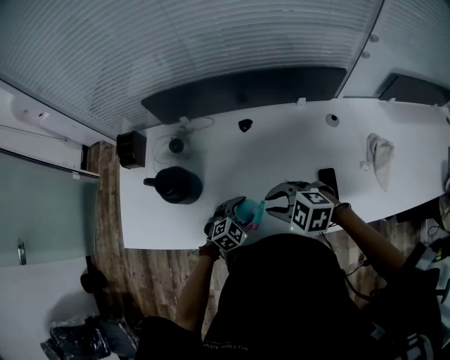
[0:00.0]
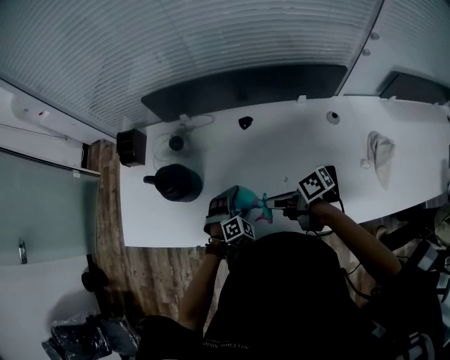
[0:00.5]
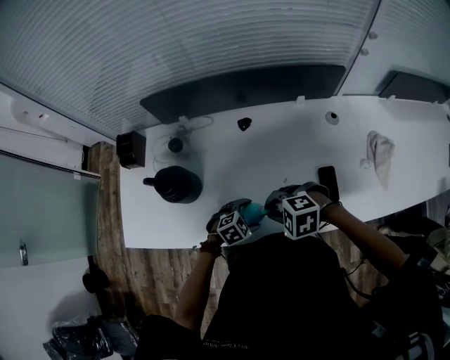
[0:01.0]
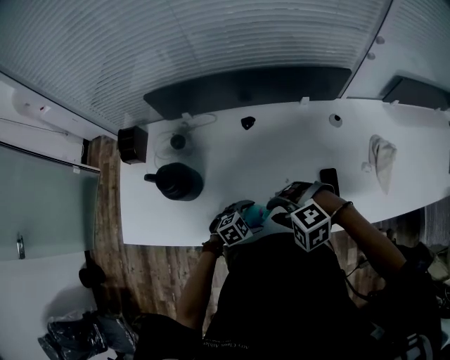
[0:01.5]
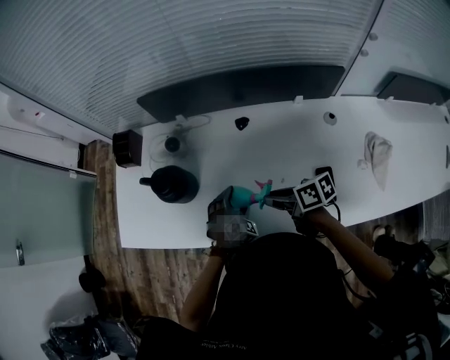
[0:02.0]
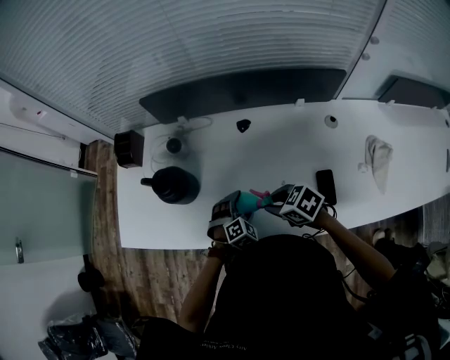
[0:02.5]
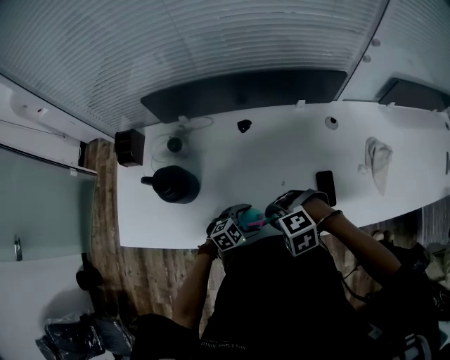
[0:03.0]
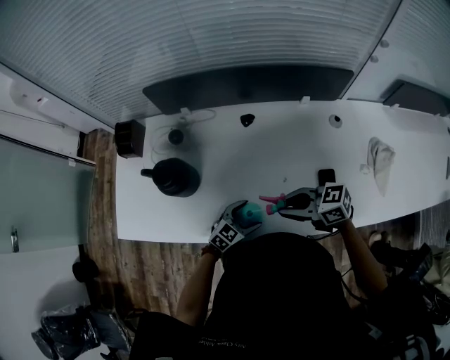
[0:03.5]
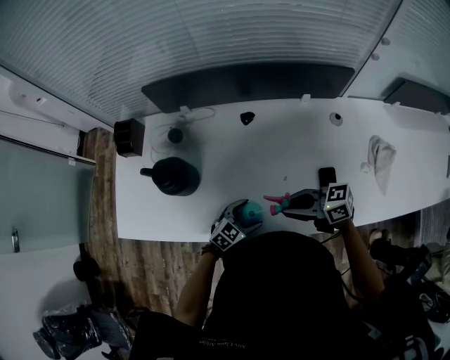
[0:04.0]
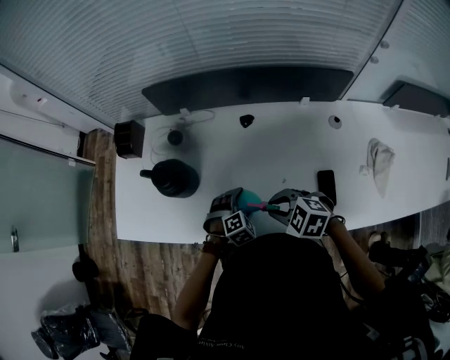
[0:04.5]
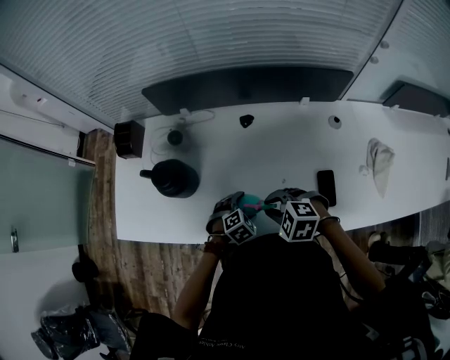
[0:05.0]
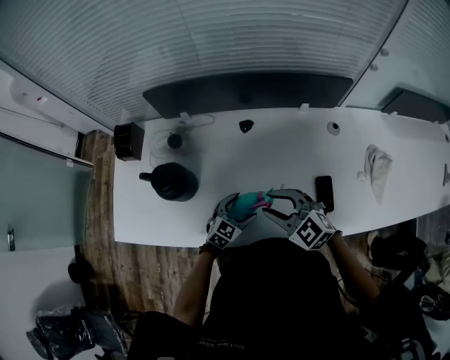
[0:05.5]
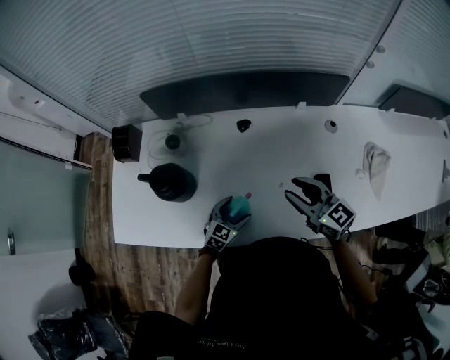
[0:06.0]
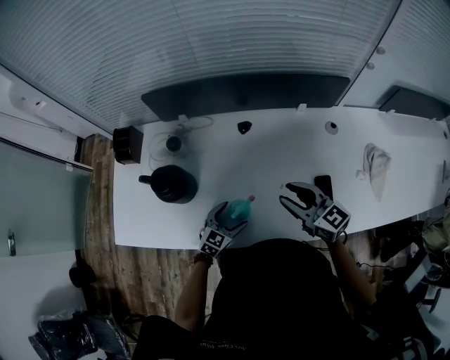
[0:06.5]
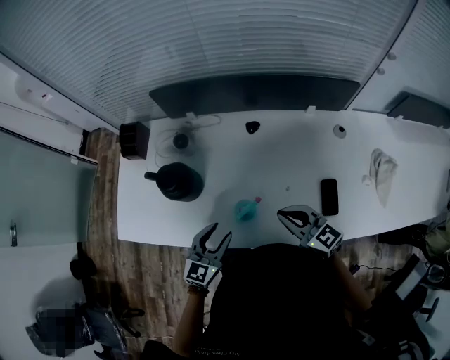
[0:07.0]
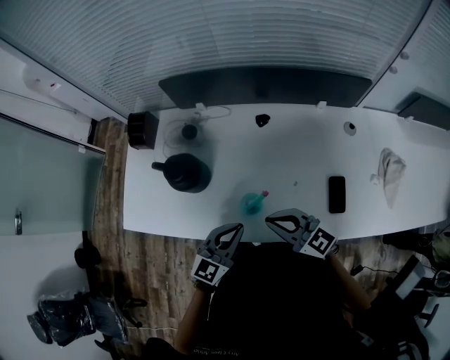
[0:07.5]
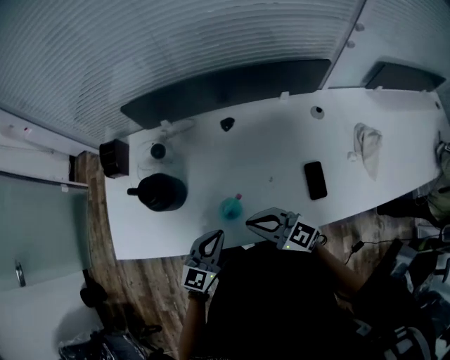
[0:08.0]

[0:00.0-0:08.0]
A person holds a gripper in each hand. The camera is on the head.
0:00.0 to 0:02.0: The left gripper ends up roughly 5 cm from where it was, and swivels approximately 30 degrees; the right gripper twists about 70 degrees clockwise, seen from behind.
0:02.0 to 0:04.0: The right gripper changes place by roughly 5 cm, and rotates approximately 30 degrees. Meanwhile the left gripper shifts by roughly 10 cm, and changes its angle by about 50 degrees.
0:04.0 to 0:06.0: The left gripper ends up roughly 5 cm from where it was. The right gripper ends up some 10 cm from where it was, and swivels approximately 40 degrees.
0:06.0 to 0:08.0: The right gripper moves to the left and backward, some 15 cm, swivels some 20 degrees, and closes. Meanwhile the left gripper moves upward and to the left, roughly 20 cm, turns by some 20 degrees, and closes.

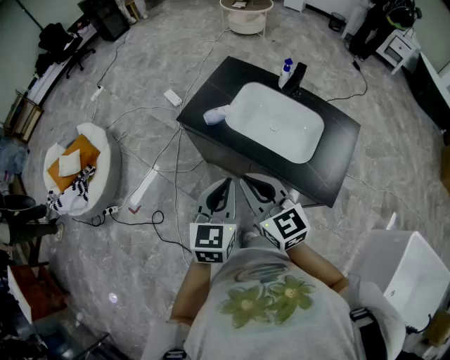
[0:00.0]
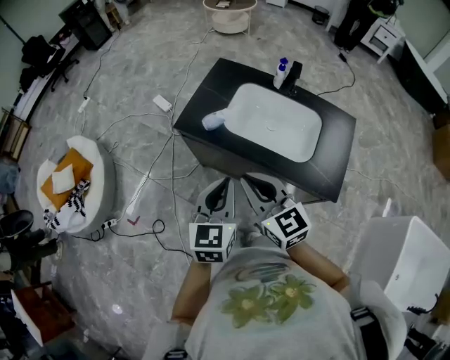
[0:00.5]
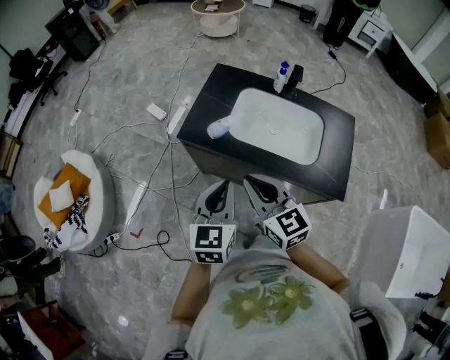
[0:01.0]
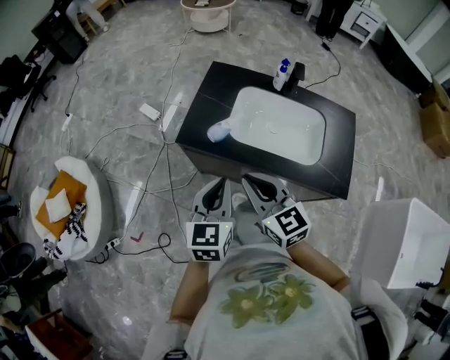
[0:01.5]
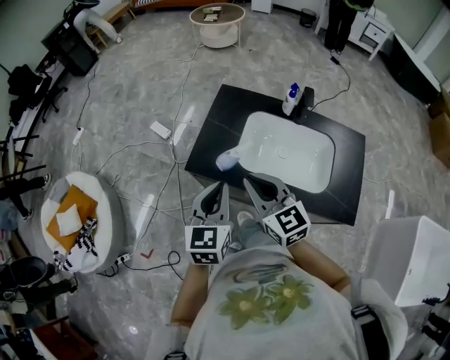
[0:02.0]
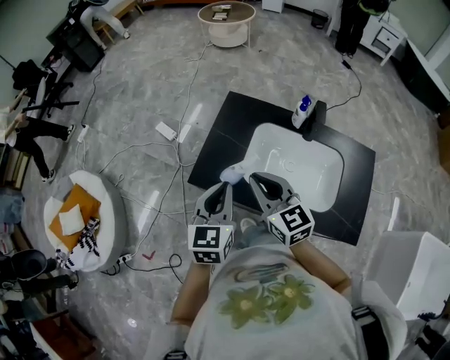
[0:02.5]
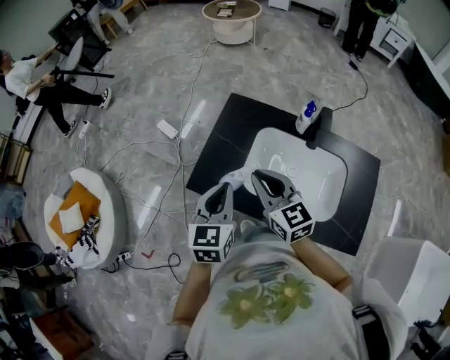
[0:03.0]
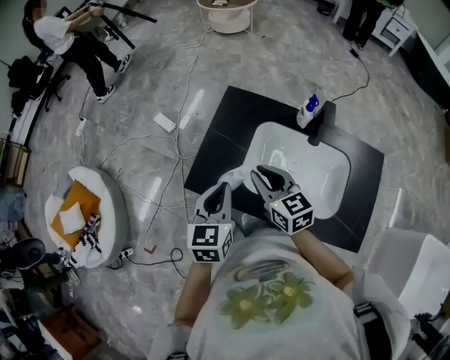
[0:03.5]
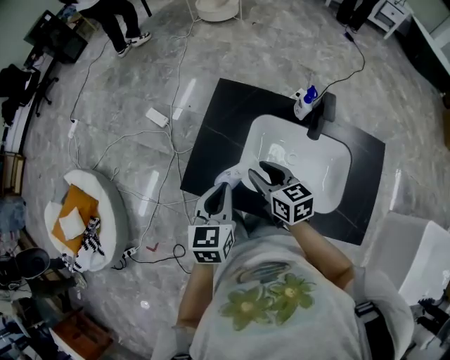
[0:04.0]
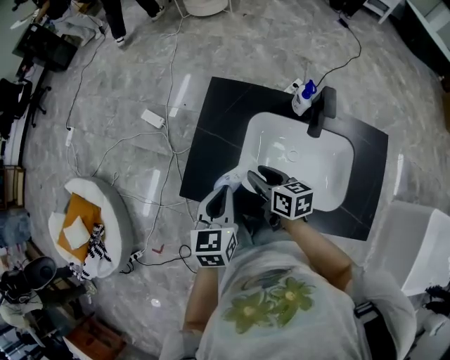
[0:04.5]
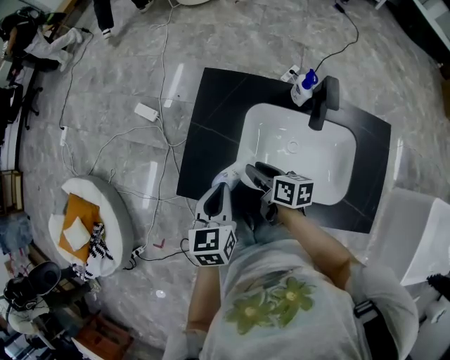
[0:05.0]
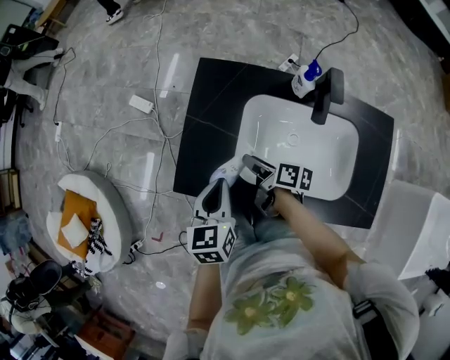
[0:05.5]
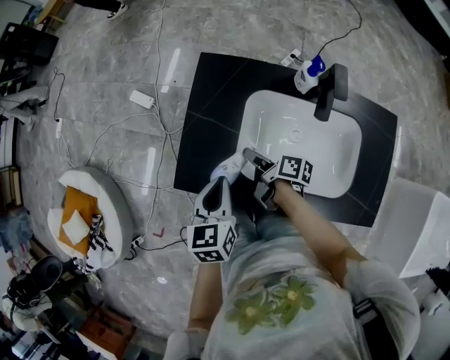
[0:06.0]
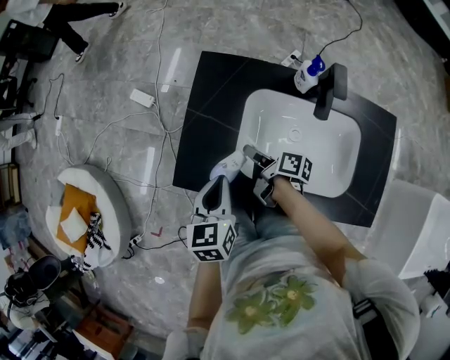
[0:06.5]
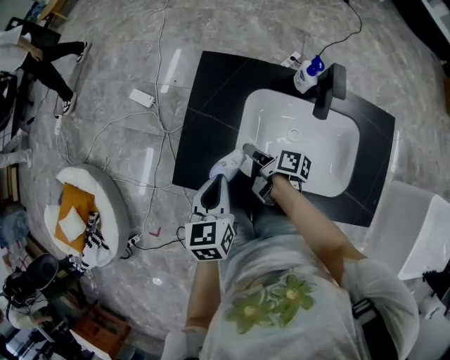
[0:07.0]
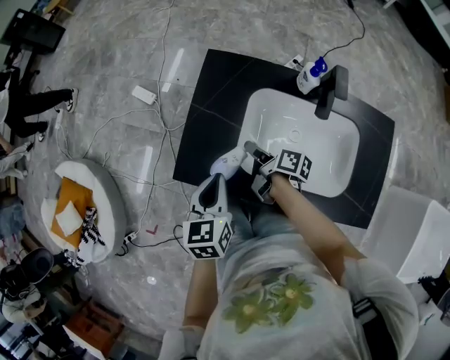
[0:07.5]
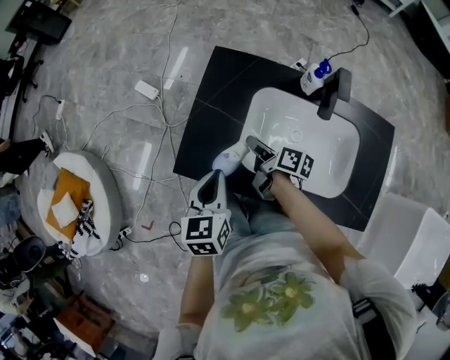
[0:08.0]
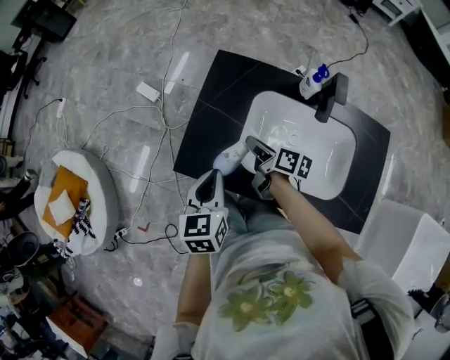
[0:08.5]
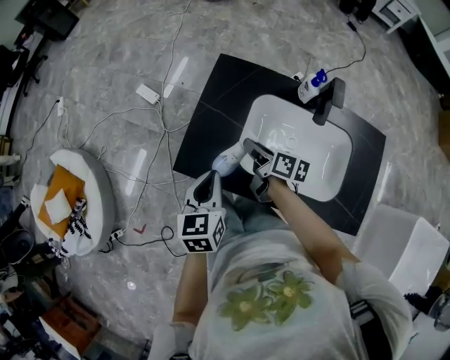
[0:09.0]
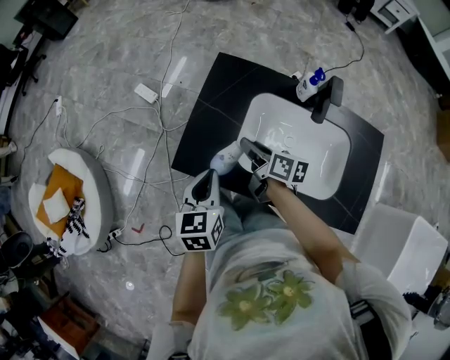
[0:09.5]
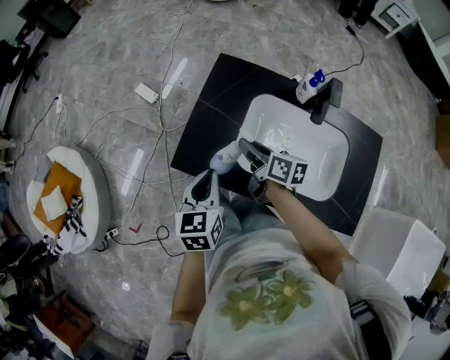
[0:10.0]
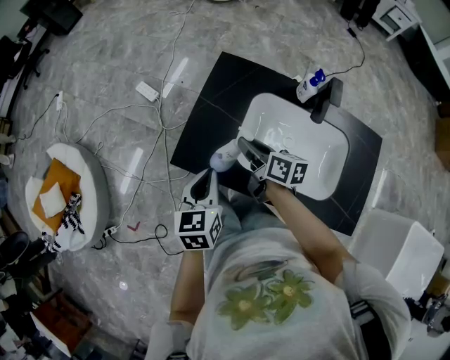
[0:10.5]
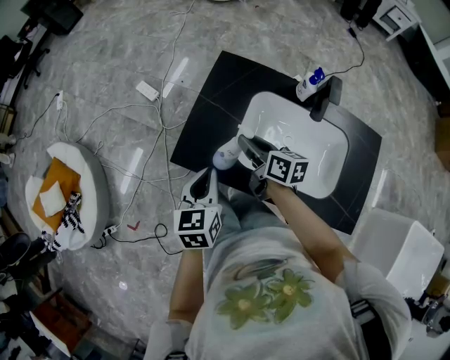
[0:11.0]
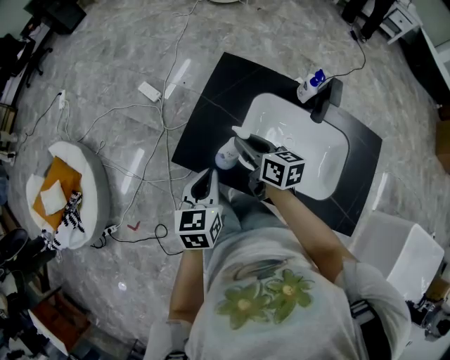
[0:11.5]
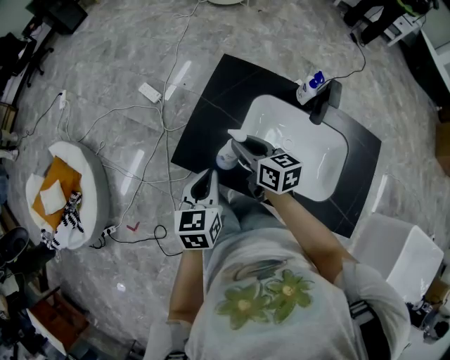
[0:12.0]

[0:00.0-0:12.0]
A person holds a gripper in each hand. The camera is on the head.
0:00.0 to 0:02.0: The right gripper travels forward by roughly 20 cm. The left gripper moves forward and to the left, approximately 25 cm.
0:02.0 to 0:04.0: The left gripper travels forward and downward by some 20 cm; the right gripper travels forward, downward and to the right by some 25 cm, rotates approximately 30 degrees, and opens up.
0:04.0 to 0:06.0: The left gripper goes approximately 10 cm downward. The right gripper is displaced downward by approximately 15 cm, and rolls clockwise, seen from behind, by about 60 degrees.
0:06.0 to 0:08.0: There are only small adjustments of the grippers.
0:08.0 to 0:10.0: The right gripper heads upward, covering about 5 cm, and rotates some 20 degrees.
0:10.0 to 0:12.0: The right gripper moves approximately 5 cm, and changes its angle by about 20 degrees.

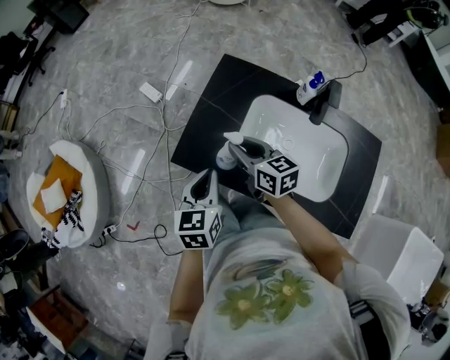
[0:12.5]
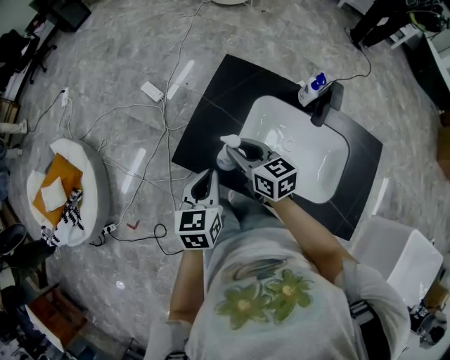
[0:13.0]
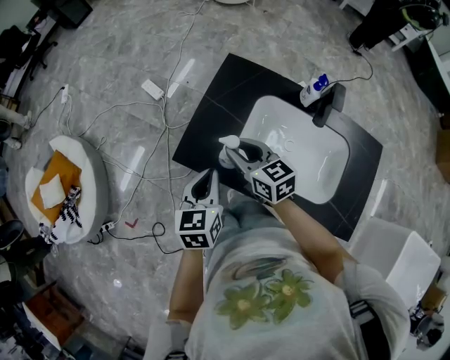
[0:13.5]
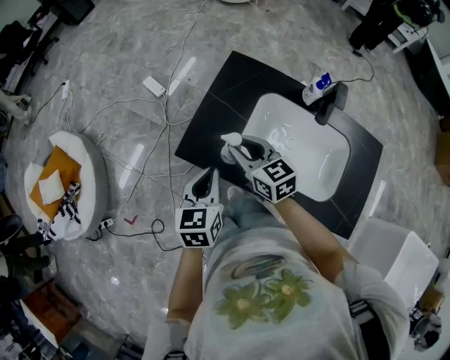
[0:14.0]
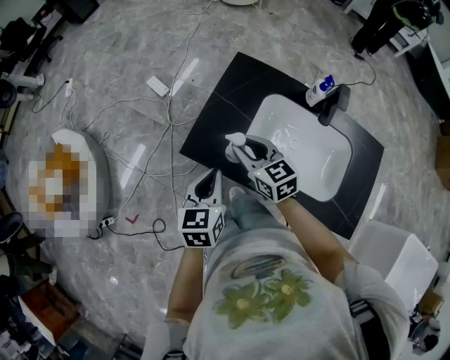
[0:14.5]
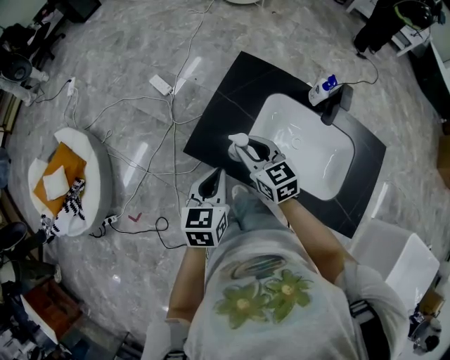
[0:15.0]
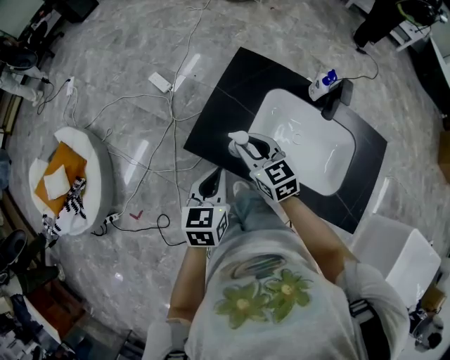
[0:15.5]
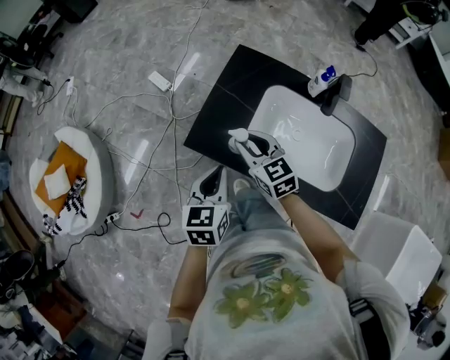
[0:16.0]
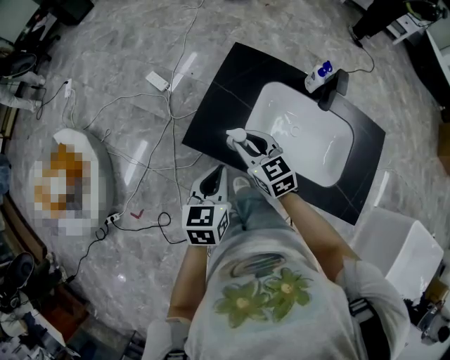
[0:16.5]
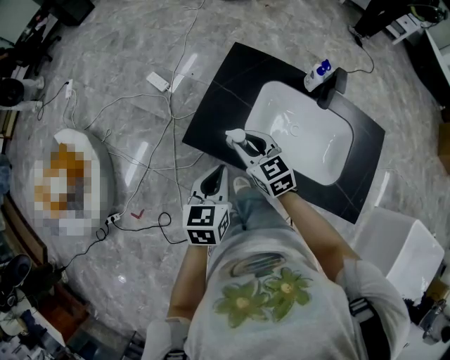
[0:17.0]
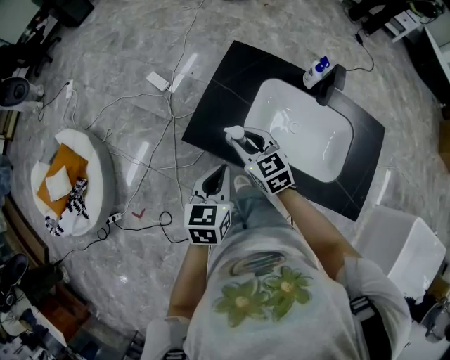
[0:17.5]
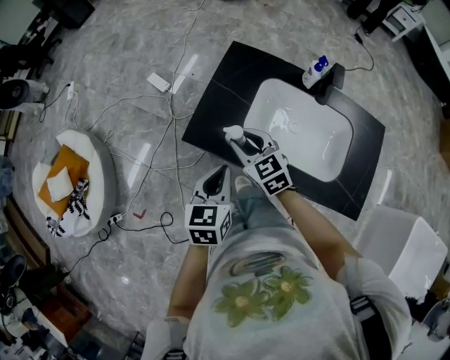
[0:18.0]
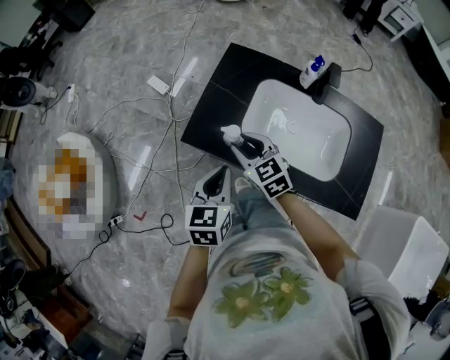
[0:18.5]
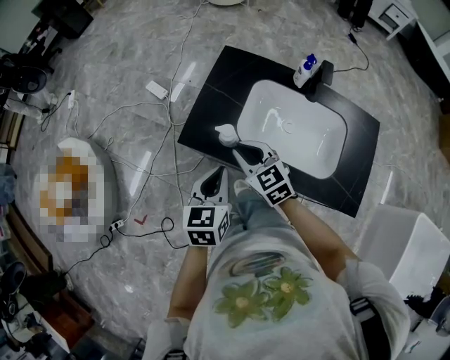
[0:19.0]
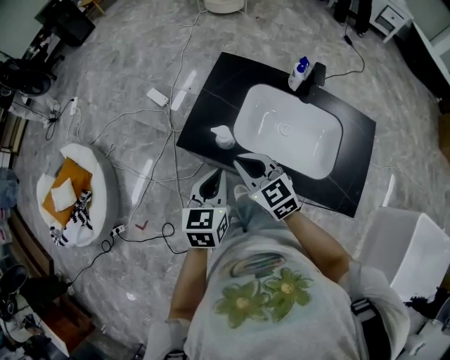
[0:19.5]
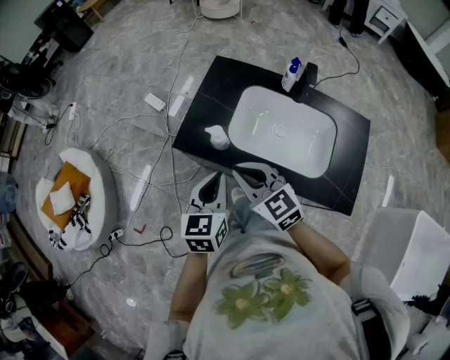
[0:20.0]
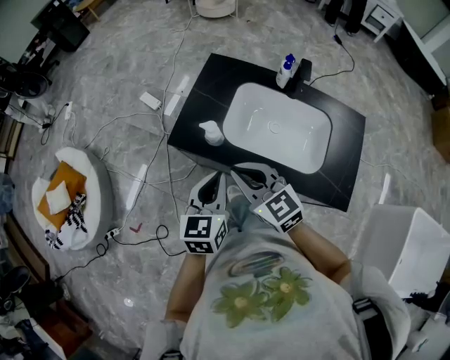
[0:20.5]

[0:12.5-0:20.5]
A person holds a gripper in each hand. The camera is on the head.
0:12.5 to 0:14.5: There are only small adjustments of the grippers.
0:14.5 to 0:16.5: The grippers stay close to where they were, moving slightly.
0:16.5 to 0:18.5: There are only small adjustments of the grippers.
0:18.5 to 0:20.5: The left gripper shifts approximately 5 cm backward, while the right gripper heads backward and upward, covering about 15 cm.
